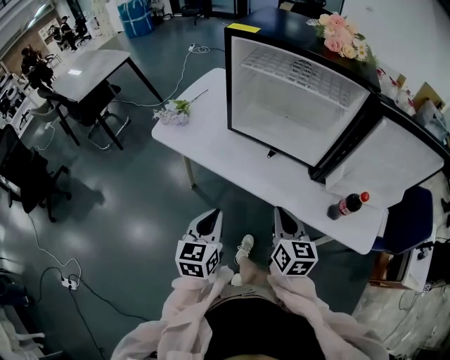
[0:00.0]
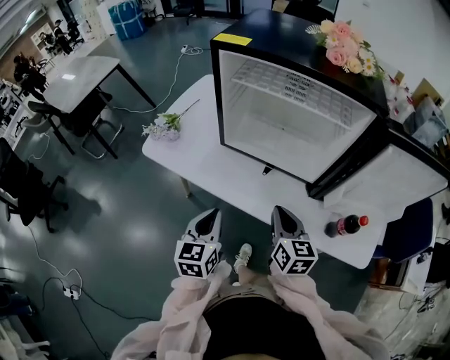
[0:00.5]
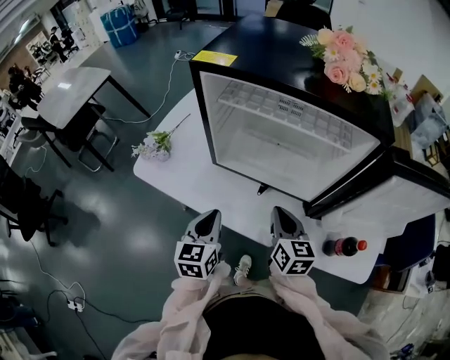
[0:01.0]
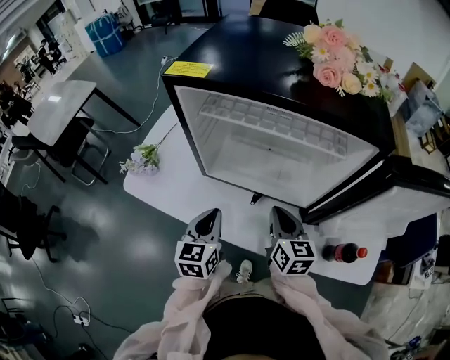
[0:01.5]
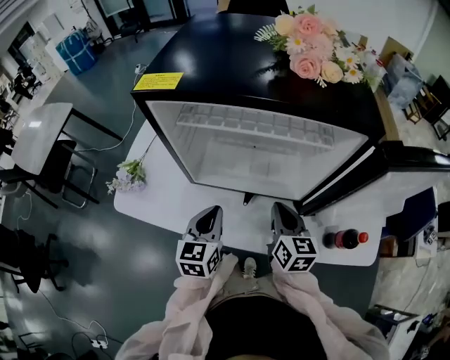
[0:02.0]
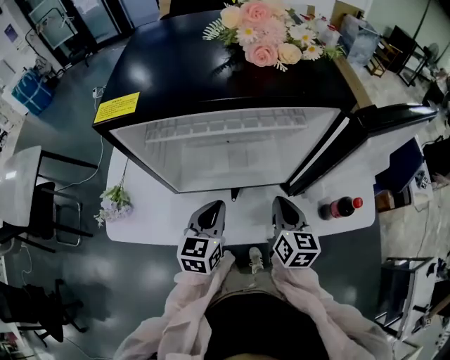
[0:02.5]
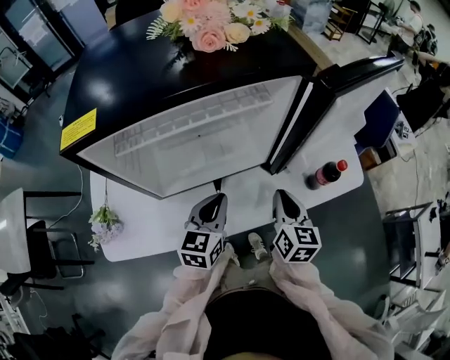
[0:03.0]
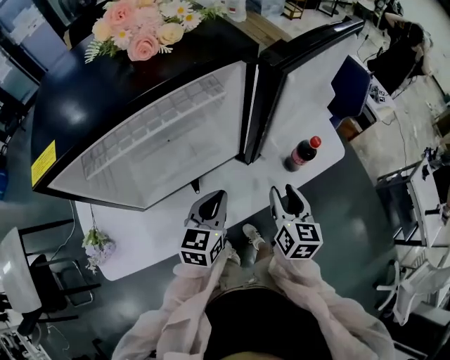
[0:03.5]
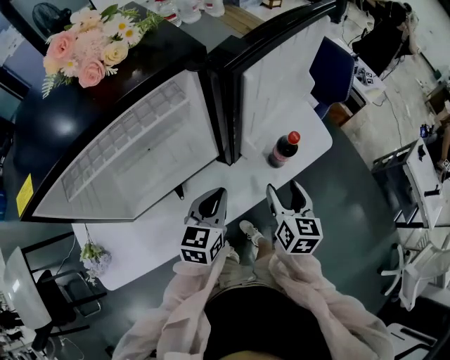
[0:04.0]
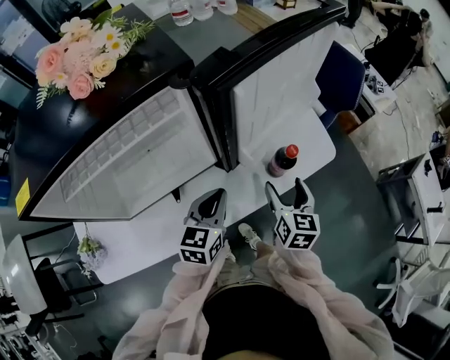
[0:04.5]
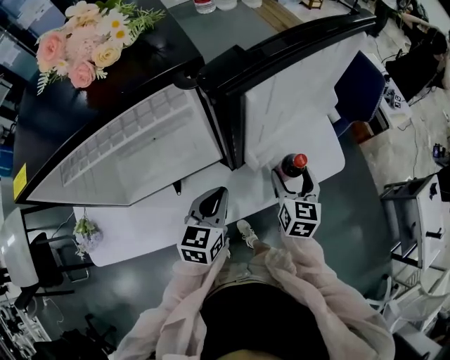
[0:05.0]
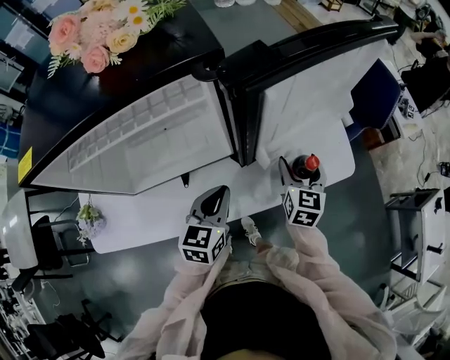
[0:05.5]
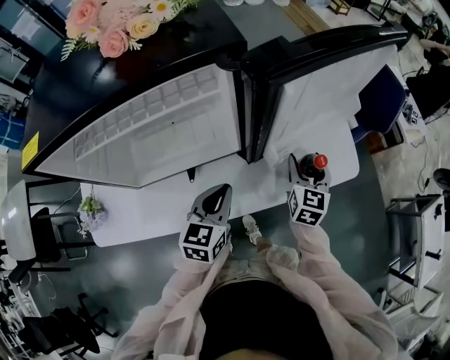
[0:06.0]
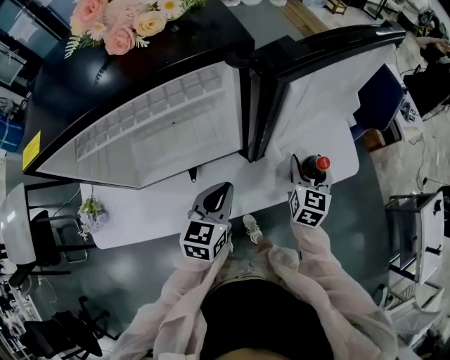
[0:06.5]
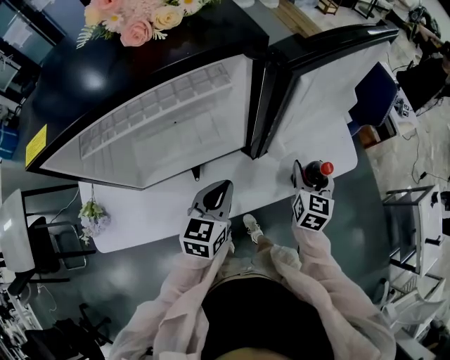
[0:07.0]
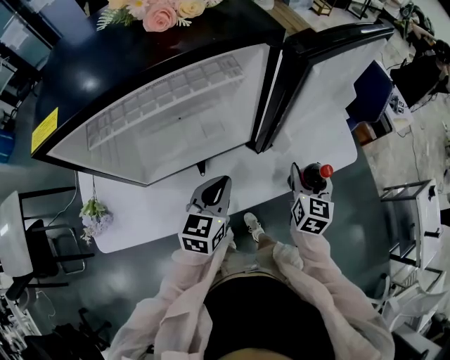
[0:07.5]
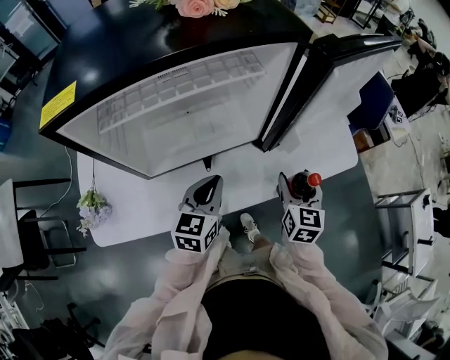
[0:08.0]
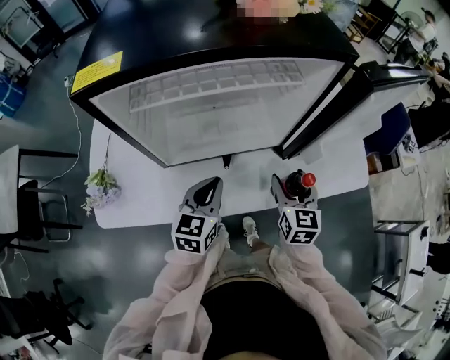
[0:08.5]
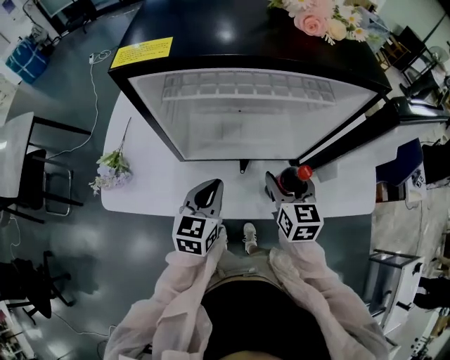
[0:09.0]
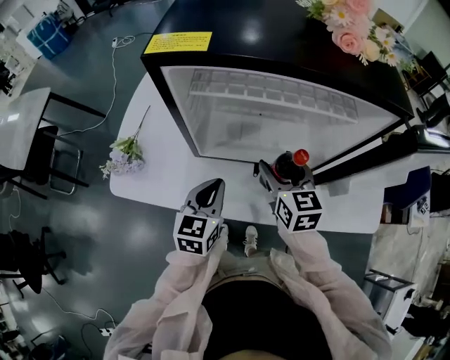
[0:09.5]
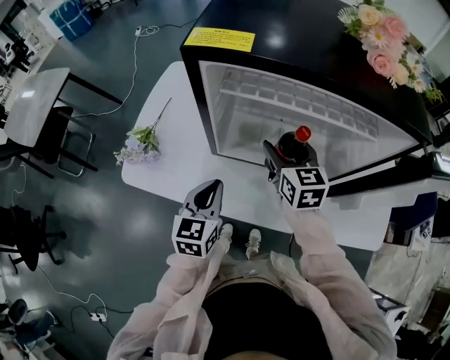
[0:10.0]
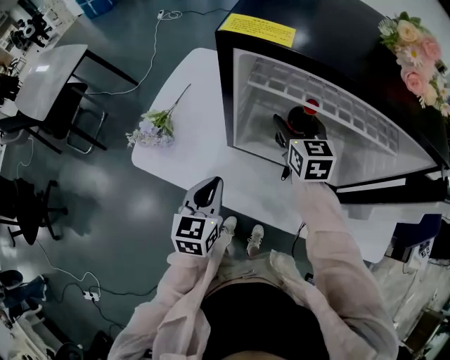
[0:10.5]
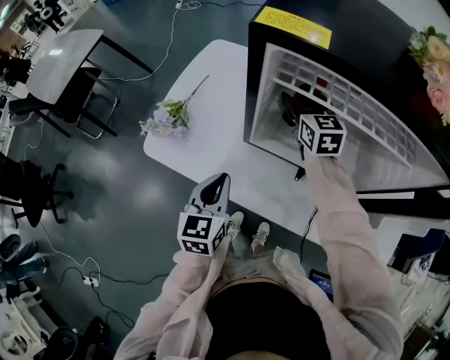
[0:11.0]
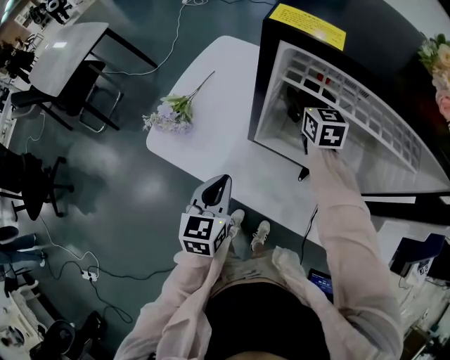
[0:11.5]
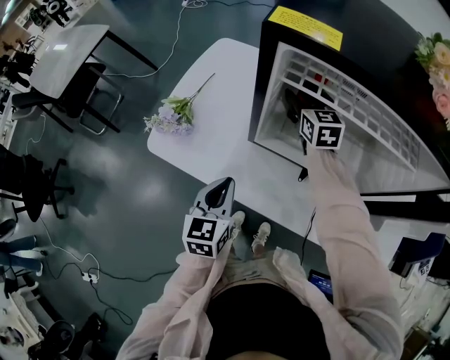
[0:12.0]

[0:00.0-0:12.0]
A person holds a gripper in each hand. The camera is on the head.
0:00.0 to 0:02.0: The two grippers go some 25 cm forward.
0:02.0 to 0:04.0: The left gripper shifts by about 20 cm, and swivels about 50 degrees; the right gripper moves approximately 25 cm, swivels some 50 degrees, and opens.
0:04.0 to 0:06.0: The right gripper shifts roughly 15 cm forward.
0:06.0 to 0:08.0: The right gripper is displaced backward and to the left by about 15 cm; the left gripper is displaced to the left and backward by approximately 10 cm.
0:08.0 to 0:10.0: The right gripper moves approximately 35 cm, and rotates some 50 degrees; the left gripper changes place by some 20 cm, and rotates about 30 degrees.
0:10.0 to 0:12.0: The left gripper travels to the left by about 5 cm. The right gripper heads forward and to the left, covering some 15 cm.

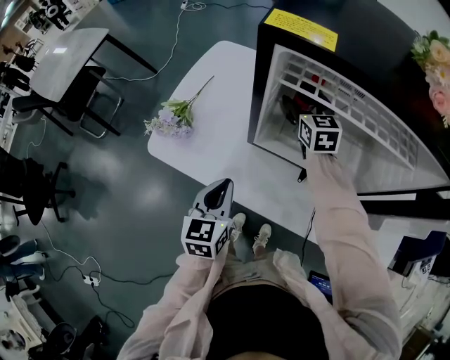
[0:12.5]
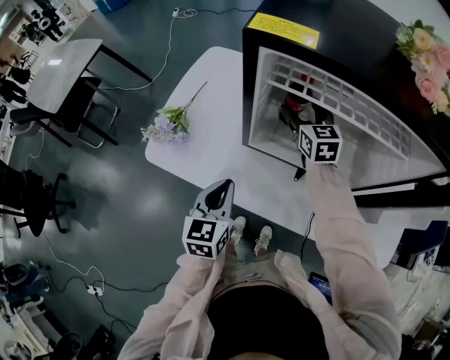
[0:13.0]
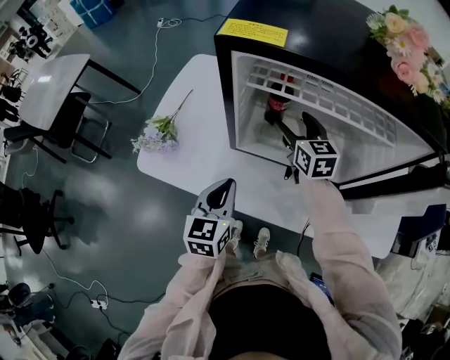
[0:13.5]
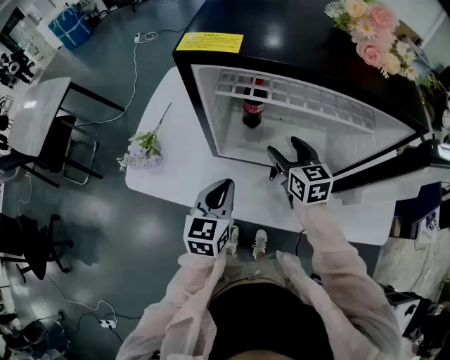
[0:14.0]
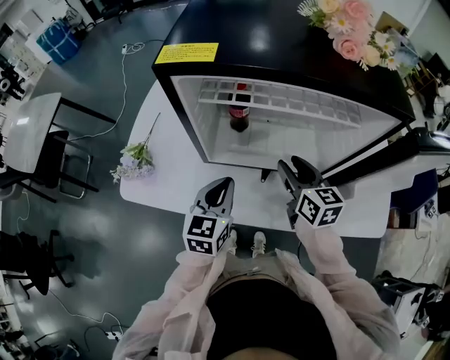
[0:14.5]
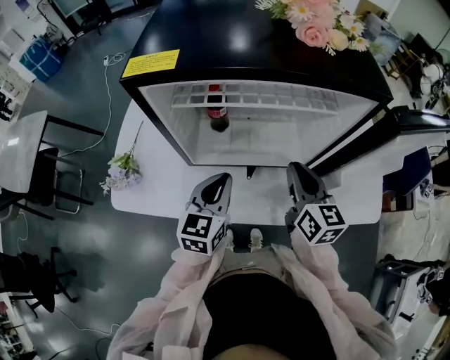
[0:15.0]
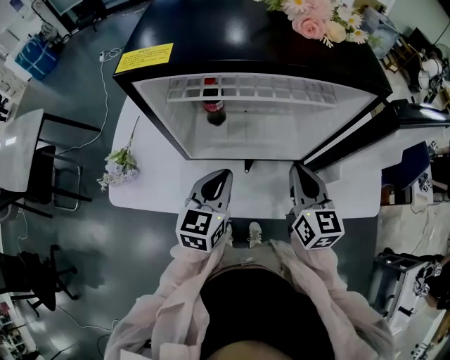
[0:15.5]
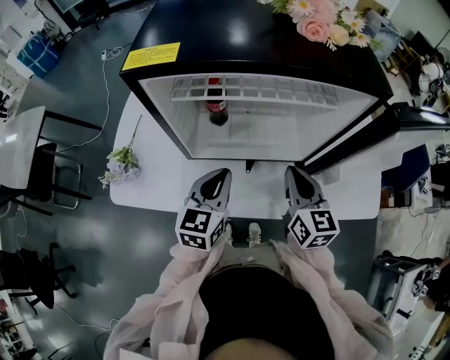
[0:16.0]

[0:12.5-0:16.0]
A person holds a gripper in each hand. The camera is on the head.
0:12.5 to 0:14.5: The right gripper goes some 25 cm backward and to the right, rotates some 20 degrees, and closes its fingers, while the left gripper heads to the right, covering about 10 cm, and turns by about 20 degrees.
0:14.5 to 0:16.0: The right gripper shifts approximately 10 cm backward and to the right, and closes its fingers.

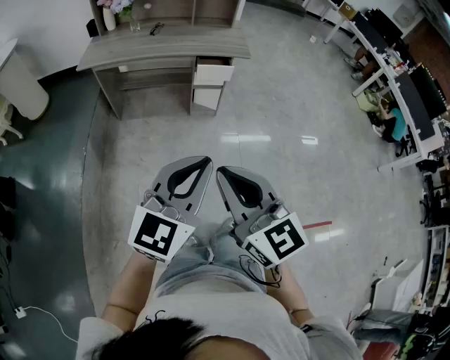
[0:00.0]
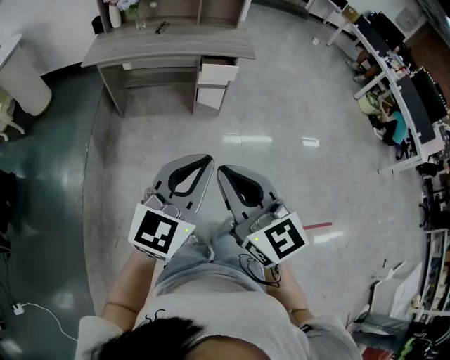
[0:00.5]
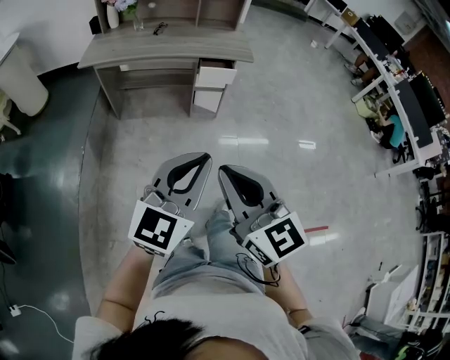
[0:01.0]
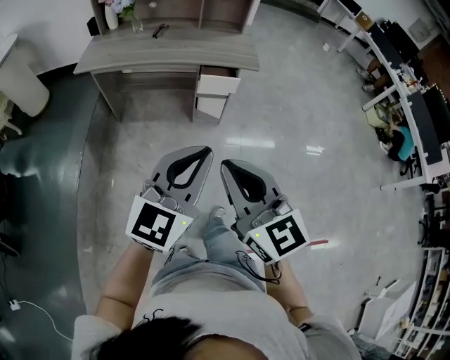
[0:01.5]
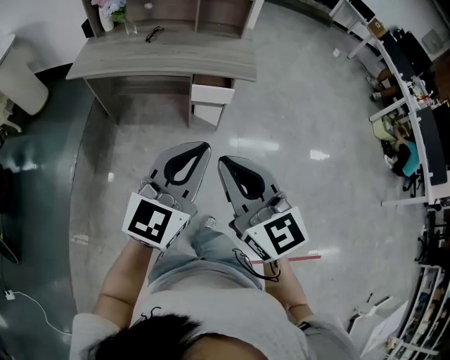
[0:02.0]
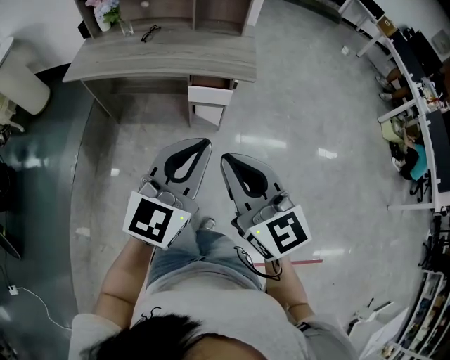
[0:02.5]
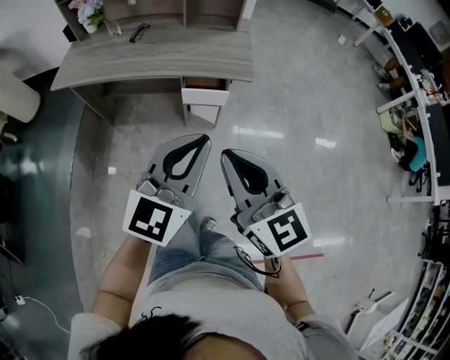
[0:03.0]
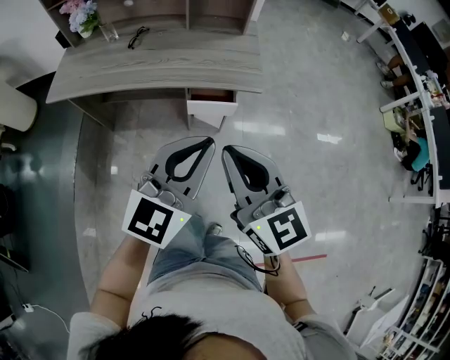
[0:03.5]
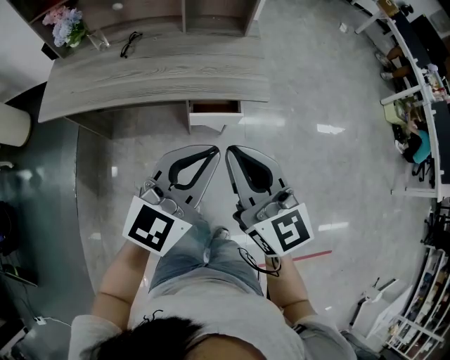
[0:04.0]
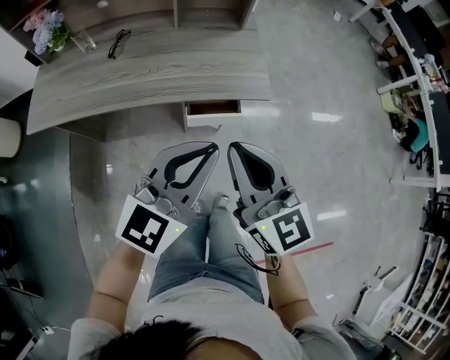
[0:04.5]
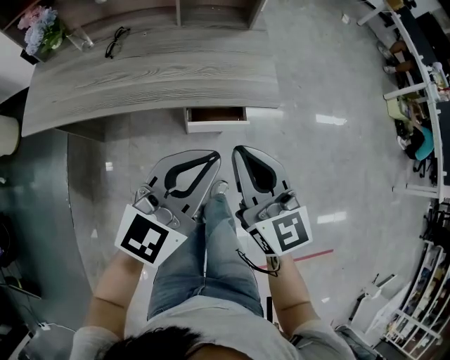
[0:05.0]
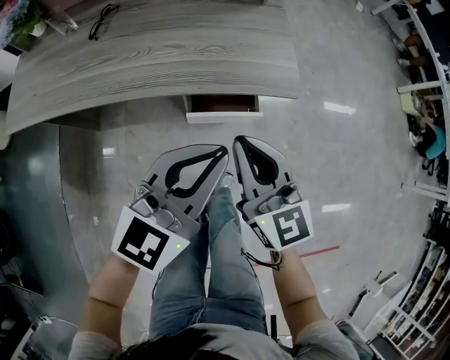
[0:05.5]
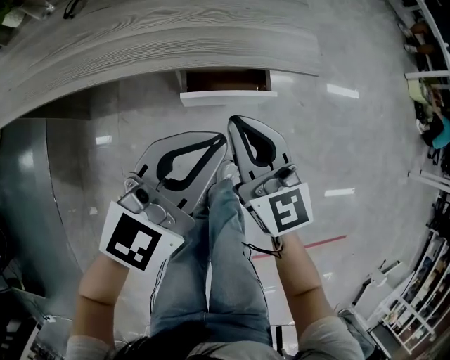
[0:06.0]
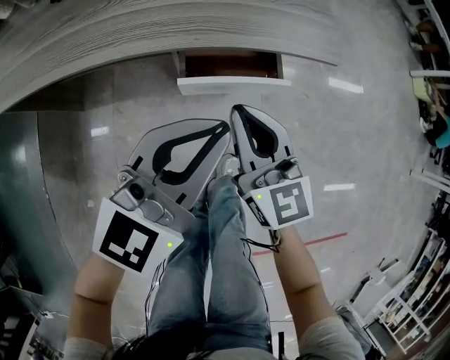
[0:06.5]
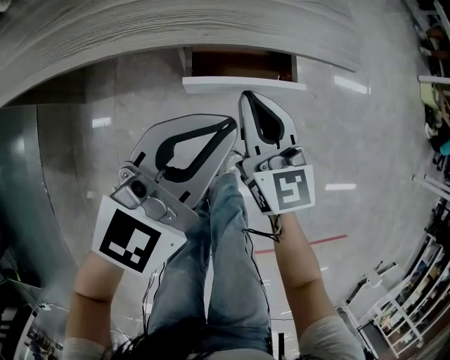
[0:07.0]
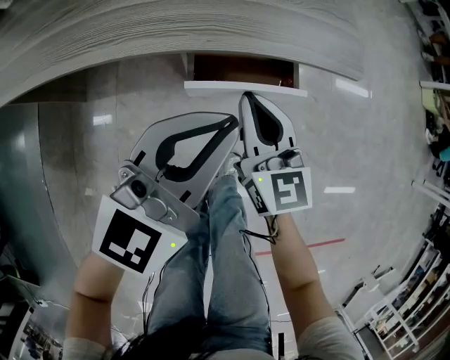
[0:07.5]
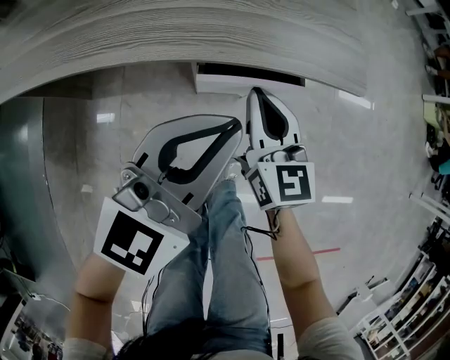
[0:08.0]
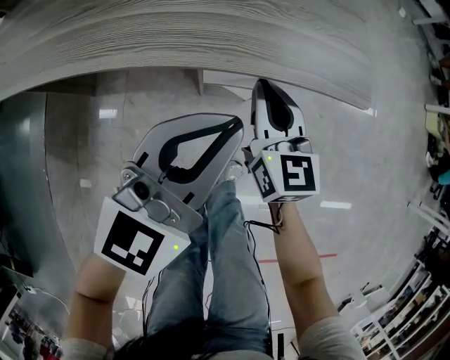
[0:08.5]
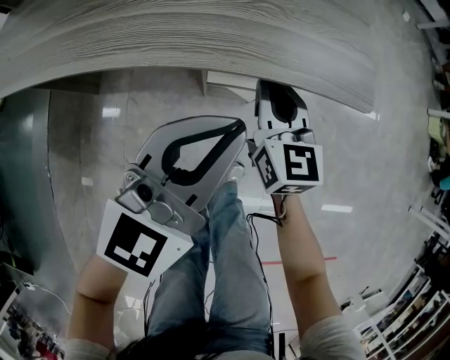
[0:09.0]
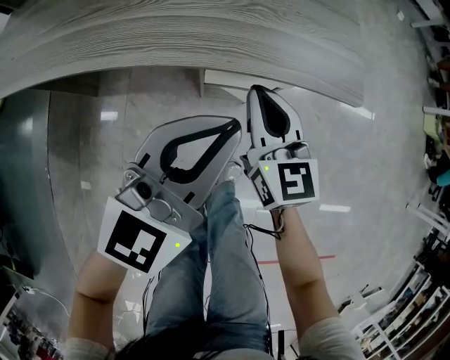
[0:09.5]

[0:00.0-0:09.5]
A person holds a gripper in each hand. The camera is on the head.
0:00.0 to 0:02.0: The left gripper moves forward, about 25 cm; the right gripper shifts approximately 25 cm forward and to the right.
0:02.0 to 0:04.0: The two grippers go roughly 25 cm forward.
0:04.0 to 0:05.5: The two grippers go roughly 20 cm downward and forward.
0:05.5 to 0:07.5: The left gripper shifts some 10 cm downward. The right gripper moves downward, about 20 cm.

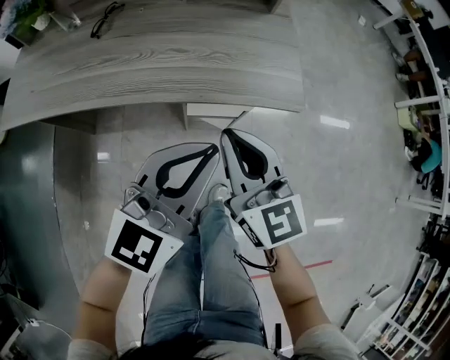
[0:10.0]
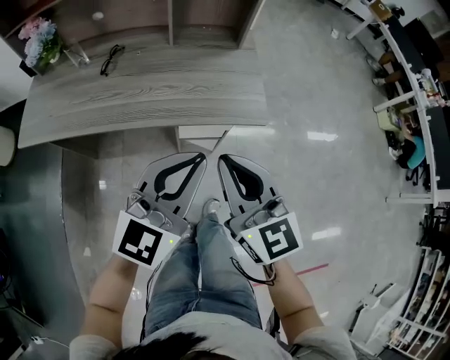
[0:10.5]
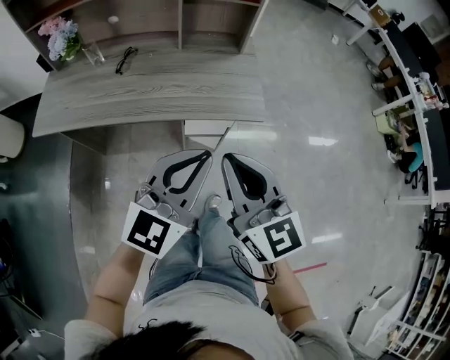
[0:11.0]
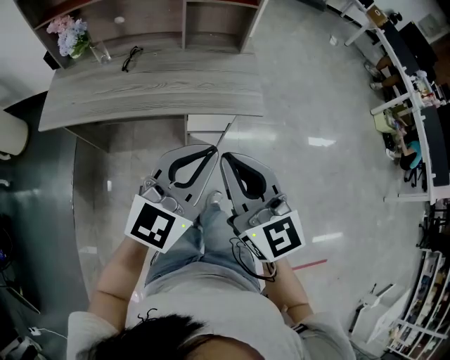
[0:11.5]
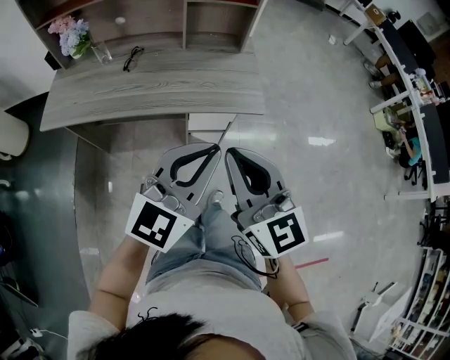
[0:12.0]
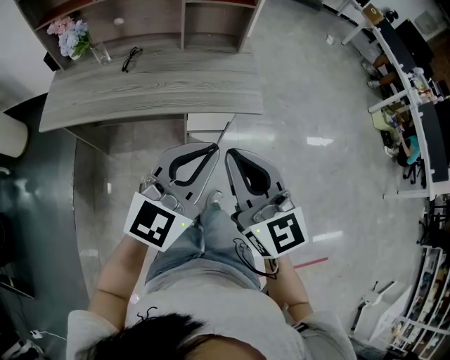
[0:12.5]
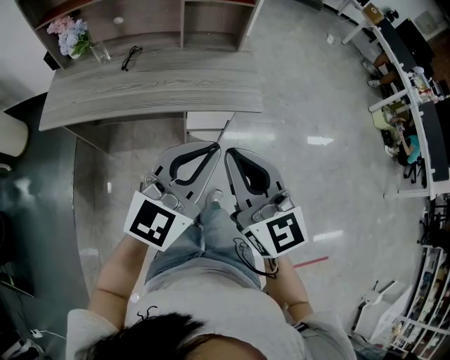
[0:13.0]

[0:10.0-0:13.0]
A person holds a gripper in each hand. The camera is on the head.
0:10.0 to 0:11.5: The two grippers go approximately 20 cm upward and backward.
0:11.5 to 0:13.0: There are only small adjustments of the grippers.
